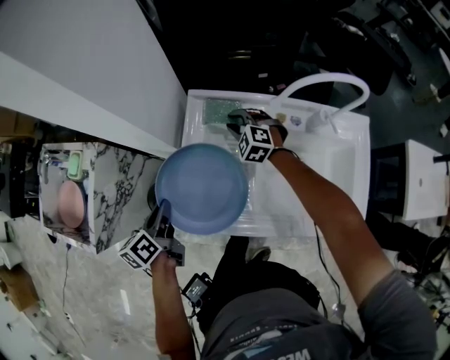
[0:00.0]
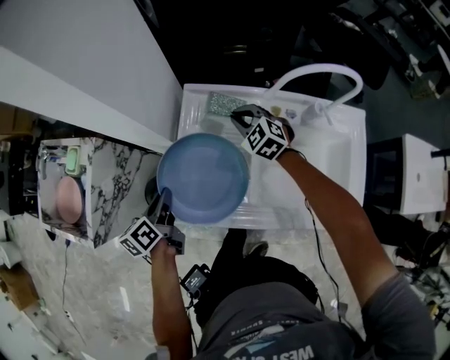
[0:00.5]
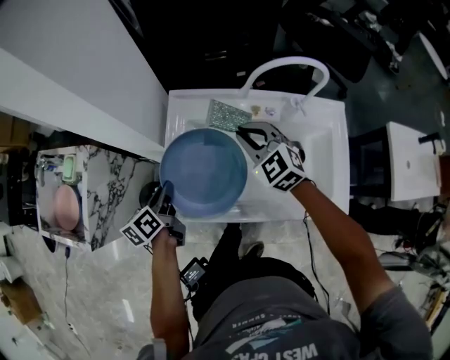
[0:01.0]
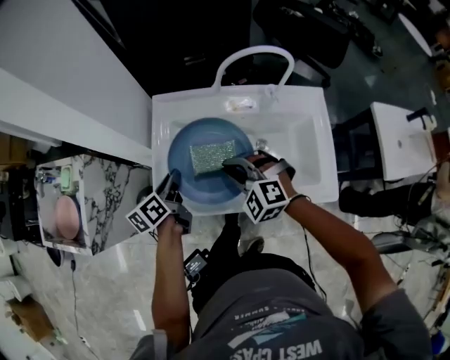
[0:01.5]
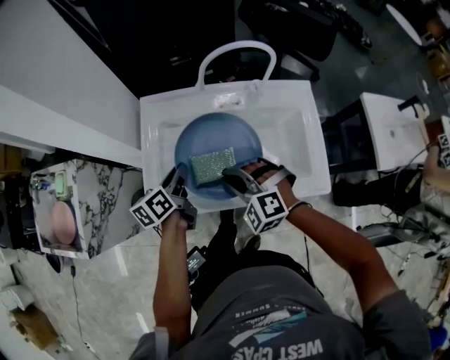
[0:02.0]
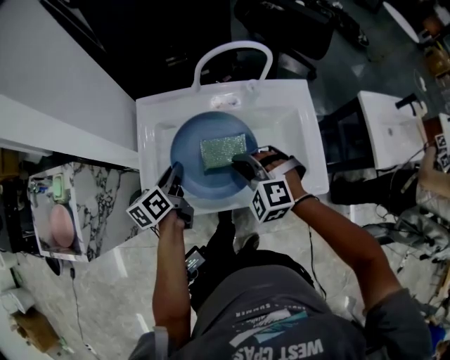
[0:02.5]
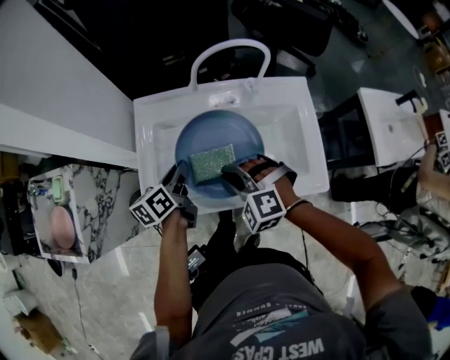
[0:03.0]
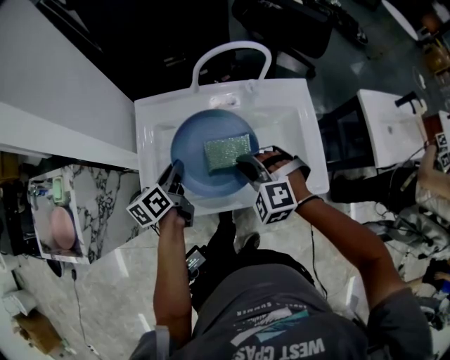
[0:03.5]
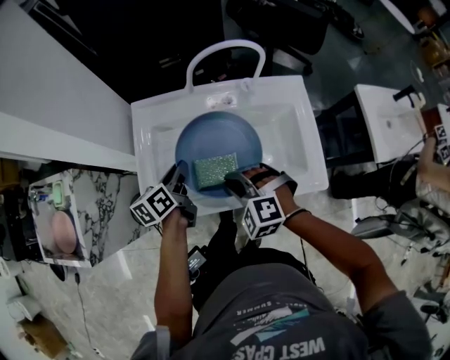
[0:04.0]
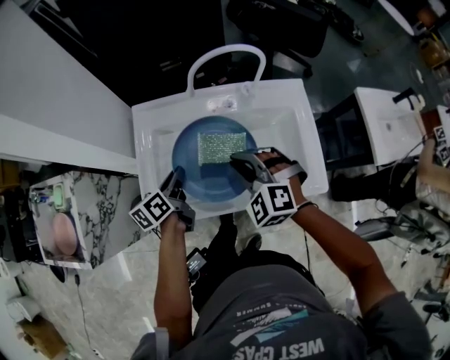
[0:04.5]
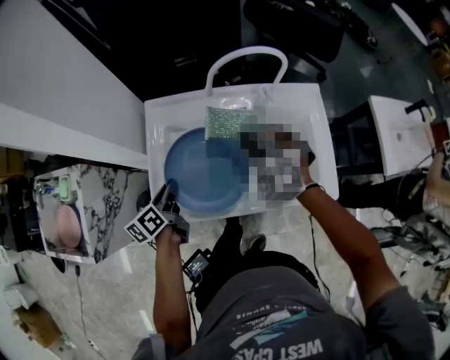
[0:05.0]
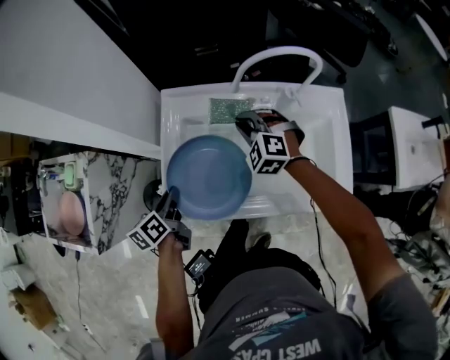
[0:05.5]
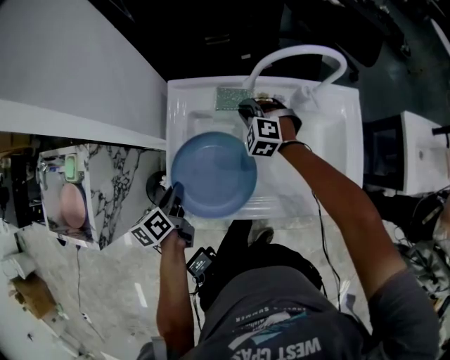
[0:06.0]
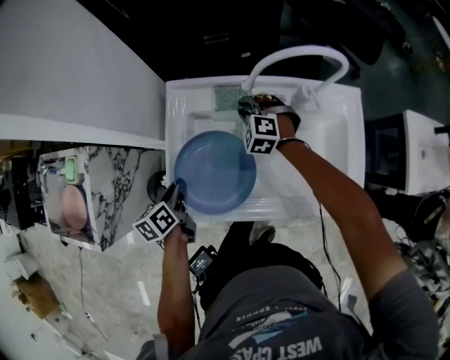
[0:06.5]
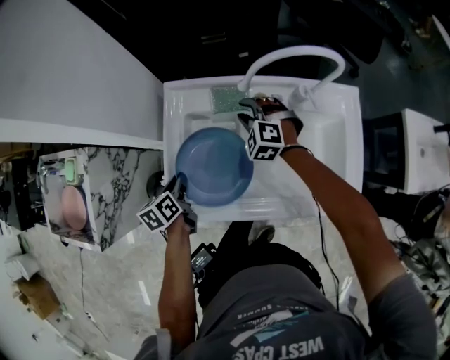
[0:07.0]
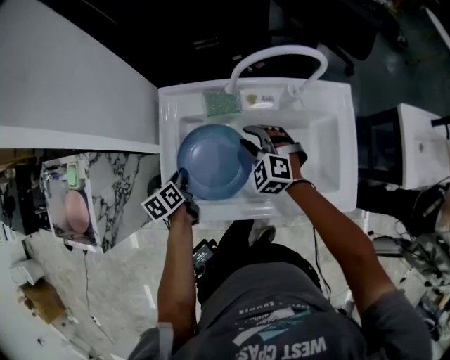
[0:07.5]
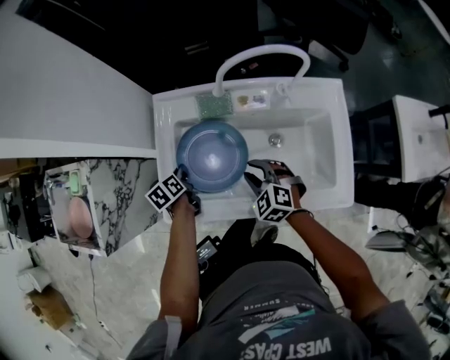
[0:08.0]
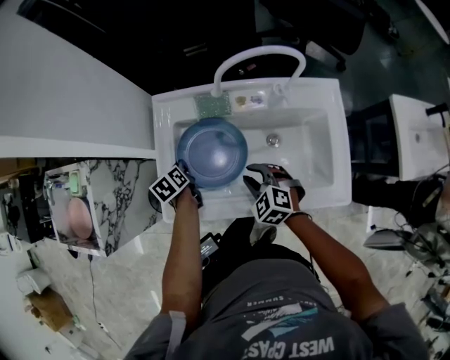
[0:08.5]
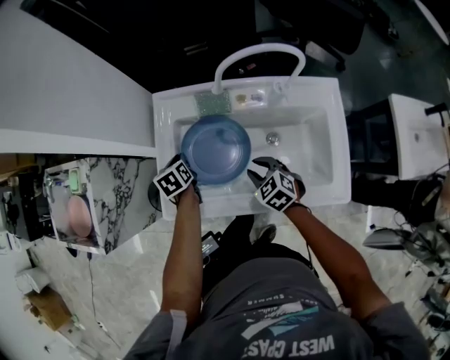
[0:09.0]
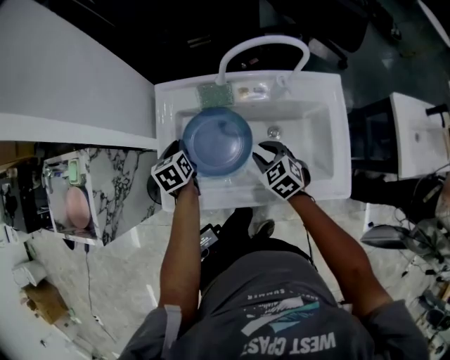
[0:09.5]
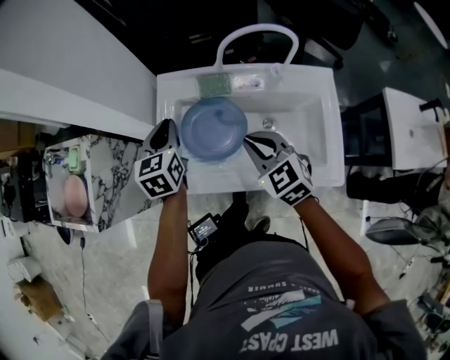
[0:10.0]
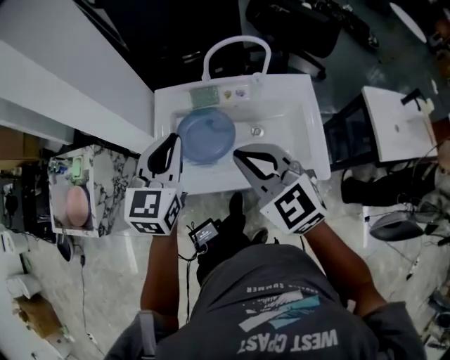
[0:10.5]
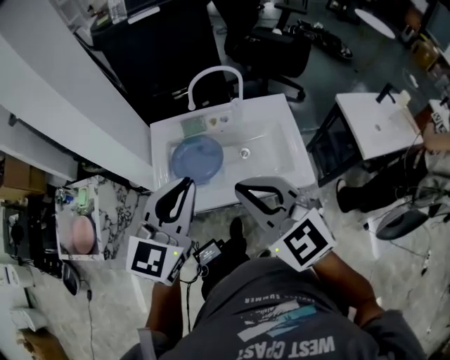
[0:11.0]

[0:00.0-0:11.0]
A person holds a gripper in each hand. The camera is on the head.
0:00.0 to 0:02.0: The right gripper shifts approximately 30 cm backward and upward. Meanwhile the left gripper shifts roughly 20 cm to the right.
0:02.0 to 0:03.5: The right gripper moves to the right, some 5 cm.
0:03.5 to 0:05.5: The left gripper heads to the left and backward, covering some 15 cm; the right gripper travels forward by about 15 cm.
0:05.5 to 0:07.5: The left gripper heads downward and forward, covering approximately 10 cm, while the right gripper opens.
0:07.5 to 0:09.0: The right gripper shifts some 10 cm backward, and swivels approximately 30 degrees.
0:09.0 to 0:11.0: The two grippers go roughly 50 cm upward and backward. The right gripper points its fingers roughly 30 degrees further upward, and closes up, while the left gripper tilts its fingers roughly 40 degrees upward.

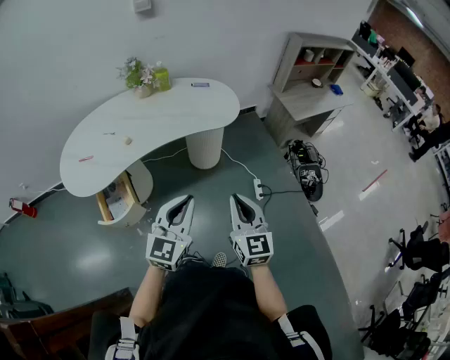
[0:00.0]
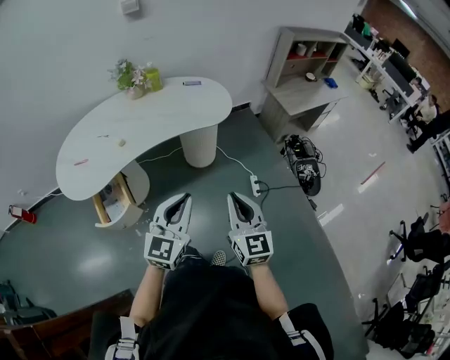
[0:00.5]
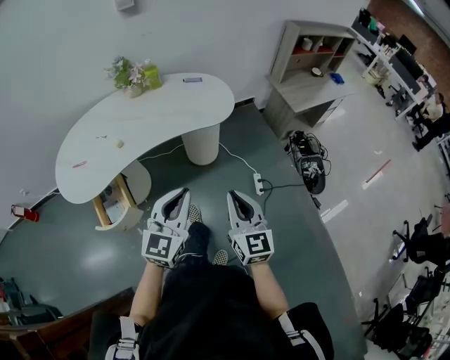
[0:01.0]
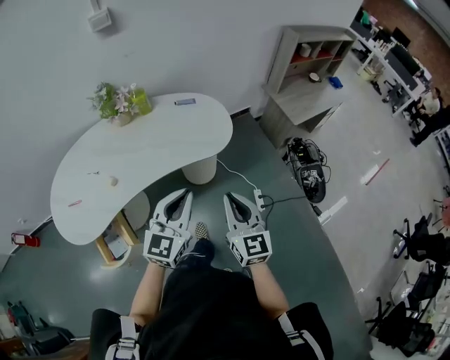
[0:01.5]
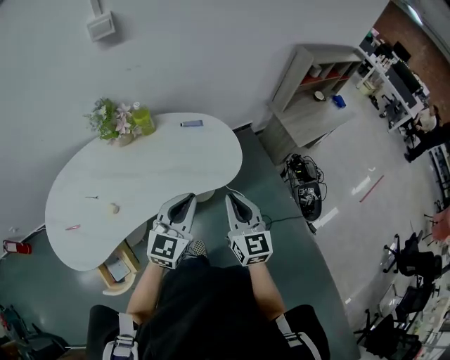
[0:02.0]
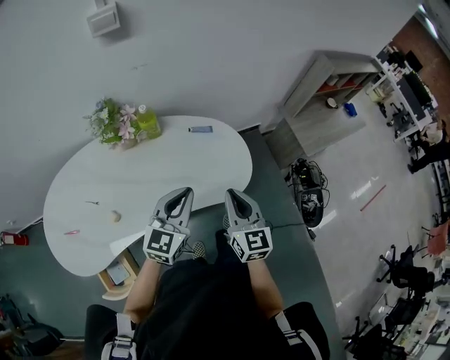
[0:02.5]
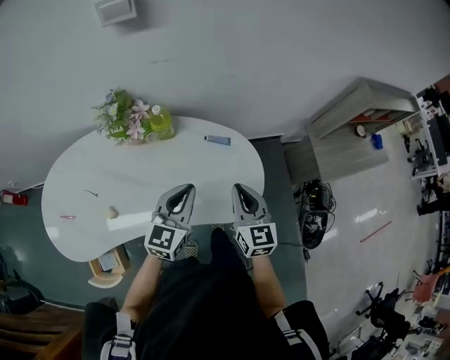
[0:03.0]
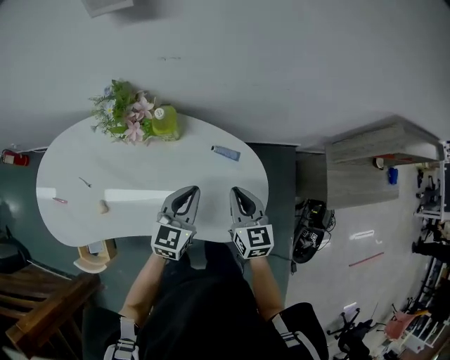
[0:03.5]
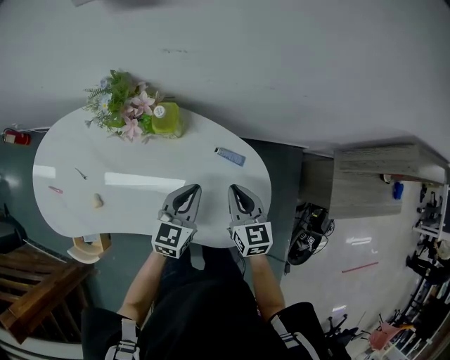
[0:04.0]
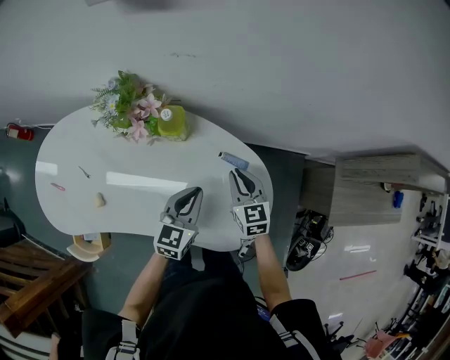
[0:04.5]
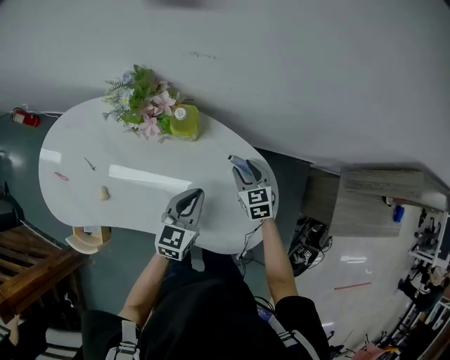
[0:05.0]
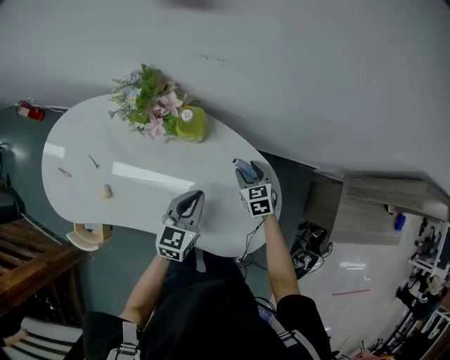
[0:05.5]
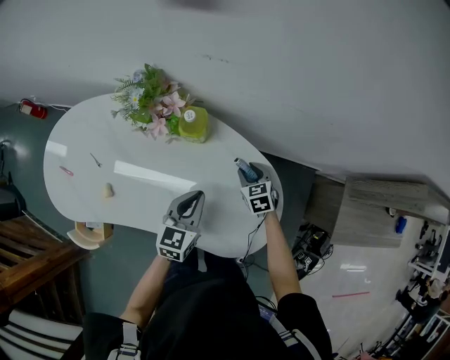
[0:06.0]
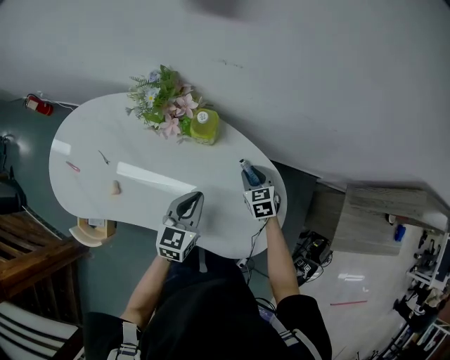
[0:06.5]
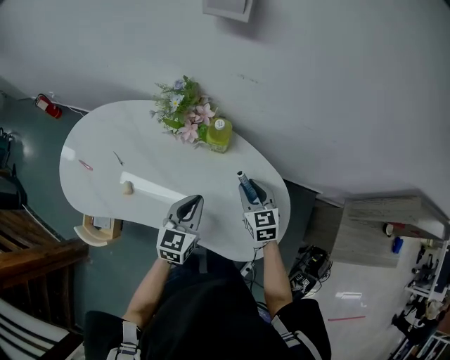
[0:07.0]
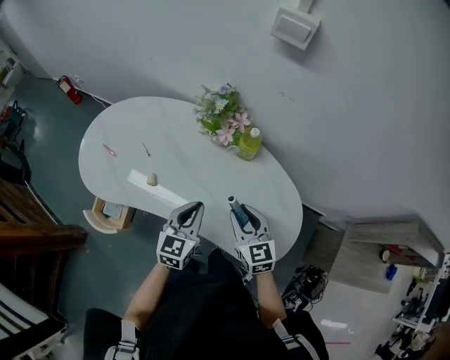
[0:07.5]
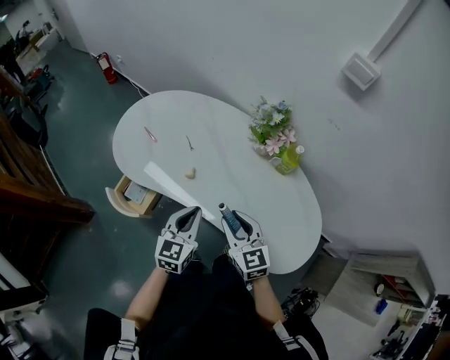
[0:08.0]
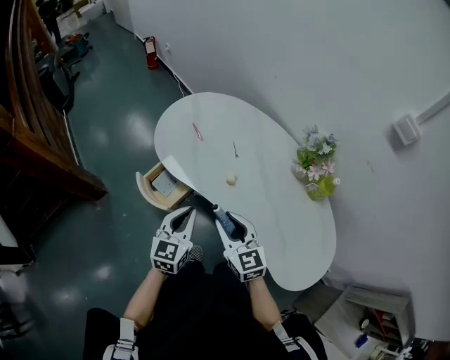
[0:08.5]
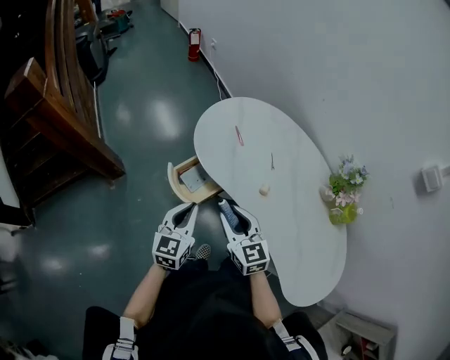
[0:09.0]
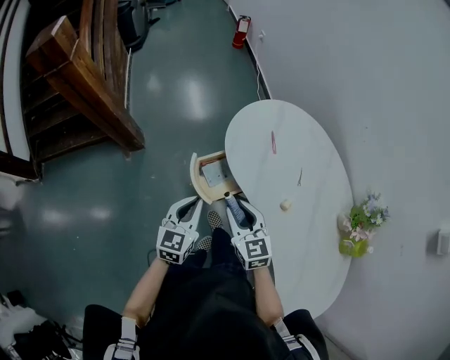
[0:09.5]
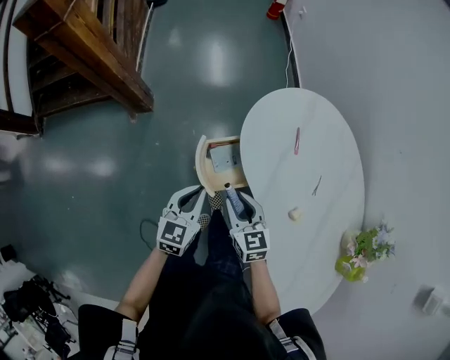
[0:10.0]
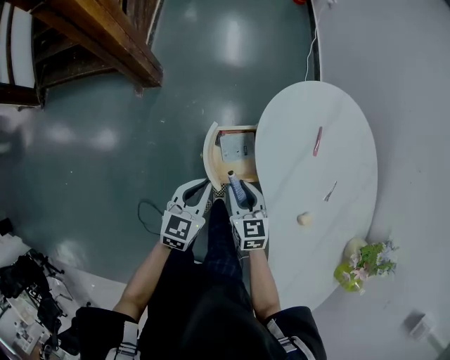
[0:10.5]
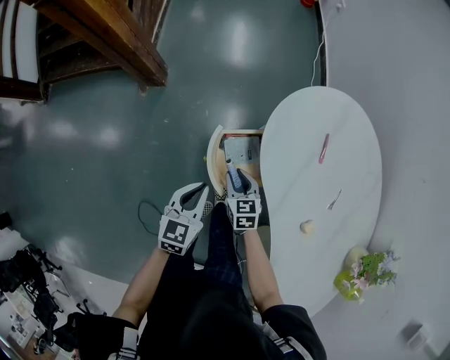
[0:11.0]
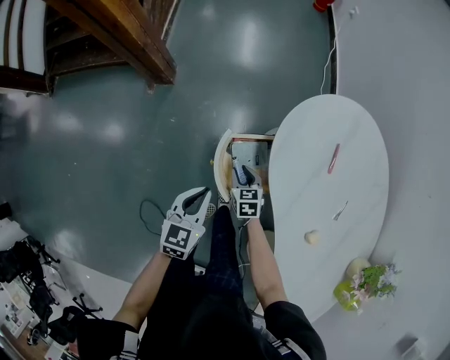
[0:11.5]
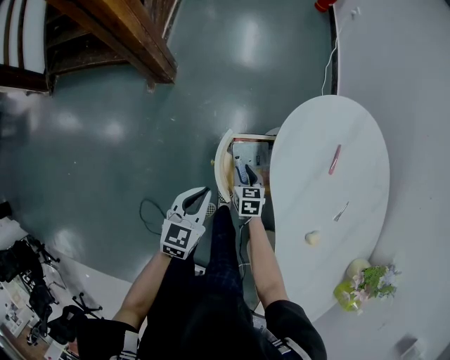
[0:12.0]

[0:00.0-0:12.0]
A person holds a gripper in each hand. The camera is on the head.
0:00.0 to 0:02.0: The two grippers go roughly 40 cm forward.
0:02.0 to 0:04.0: The right gripper moves roughly 40 cm, and rotates some 40 degrees. Meanwhile the left gripper shifts by some 40 cm, and changes its angle by roughly 40 degrees.
0:04.0 to 0:06.0: The right gripper is displaced downward and forward by approximately 15 cm, rotates approximately 30 degrees, and opens up.
0:06.0 to 0:08.0: The right gripper shifts by some 50 cm, and changes its angle by roughly 40 degrees, while the left gripper ends up approximately 35 cm from where it was, and swivels roughly 30 degrees.
0:08.0 to 0:10.0: The two grippers travel together, roughly 40 cm. The left gripper rotates approximately 40 degrees, while the right gripper swivels approximately 40 degrees.
0:10.0 to 0:12.0: The left gripper shifts some 10 cm downward; the right gripper travels downward by some 25 cm.

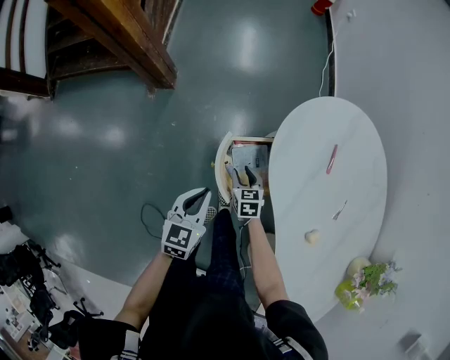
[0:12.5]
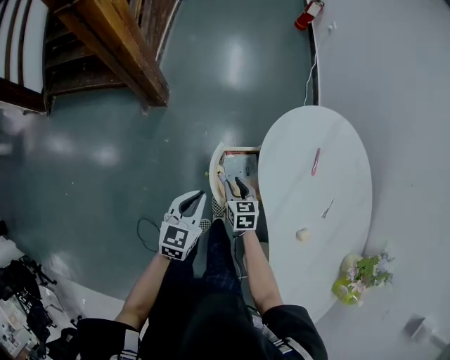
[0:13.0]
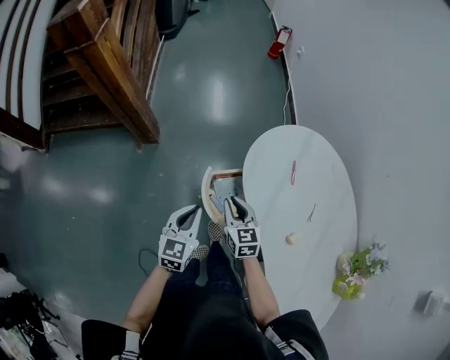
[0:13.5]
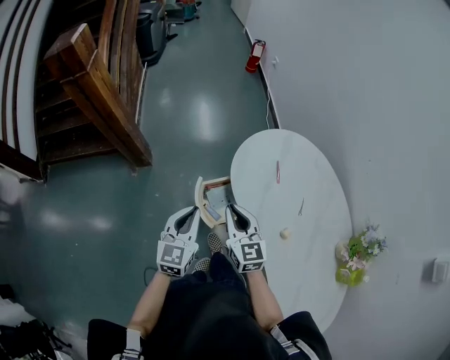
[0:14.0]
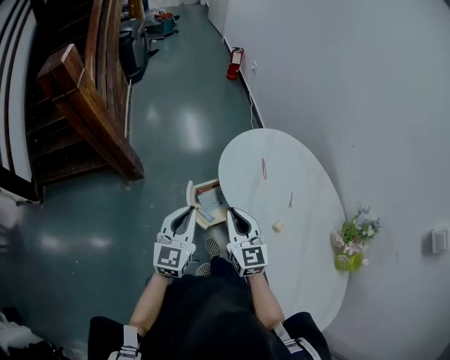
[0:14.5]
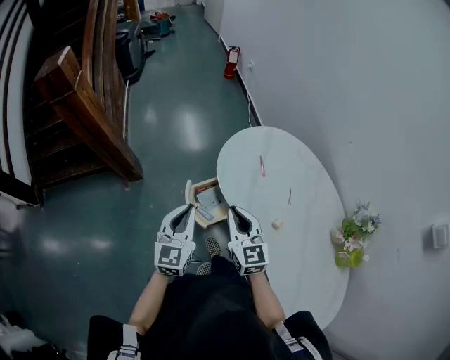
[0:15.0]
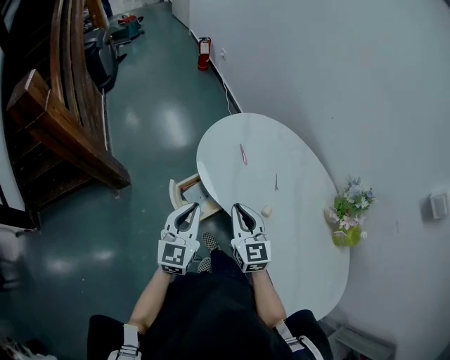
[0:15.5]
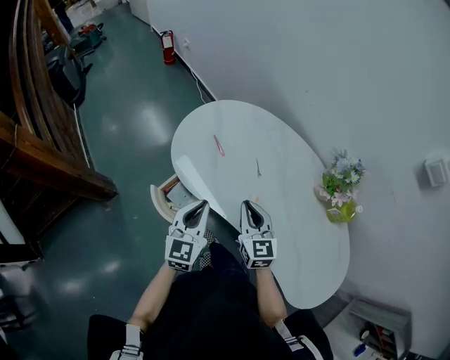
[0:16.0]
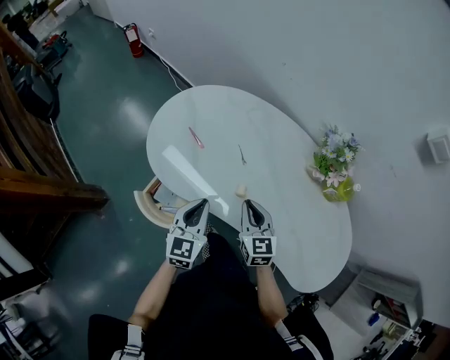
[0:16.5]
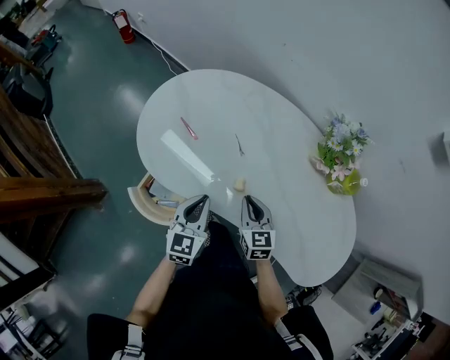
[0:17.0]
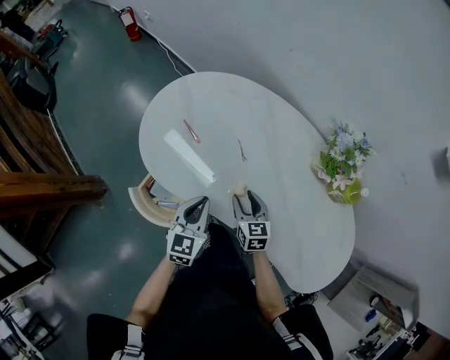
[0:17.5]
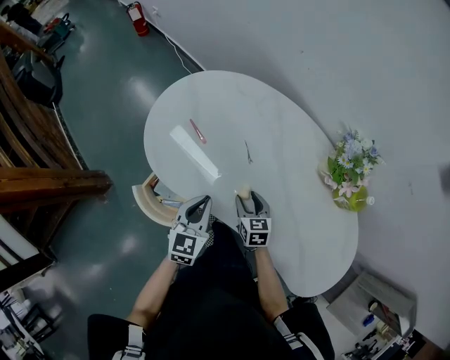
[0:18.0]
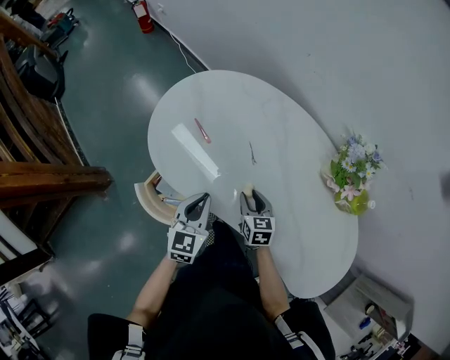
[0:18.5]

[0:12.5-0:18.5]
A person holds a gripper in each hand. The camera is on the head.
0:12.5 to 0:14.5: The right gripper heads upward, covering approximately 40 cm, tips its fingers upward by some 40 degrees, and closes. The left gripper shifts approximately 25 cm upward, and turns by some 30 degrees.
0:14.5 to 0:16.5: The left gripper shifts by approximately 25 cm, and turns by about 40 degrees; the right gripper ends up some 25 cm from where it was, and changes its angle by approximately 40 degrees.
0:16.5 to 0:18.5: The left gripper heads downward, covering approximately 5 cm; the right gripper moves downward and forward, roughly 15 cm, and opens.
